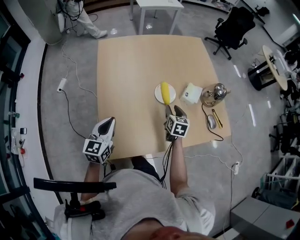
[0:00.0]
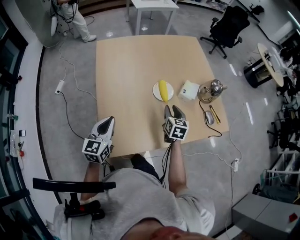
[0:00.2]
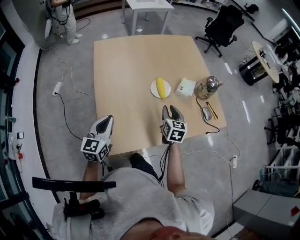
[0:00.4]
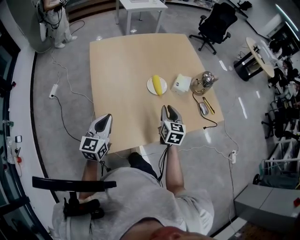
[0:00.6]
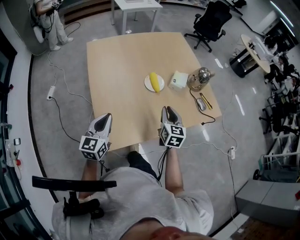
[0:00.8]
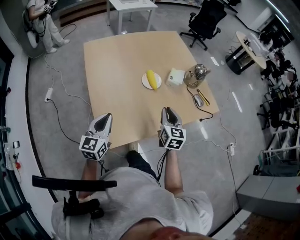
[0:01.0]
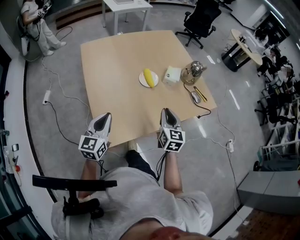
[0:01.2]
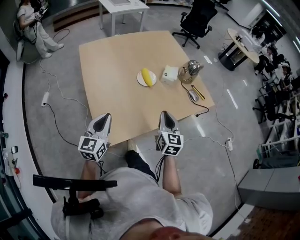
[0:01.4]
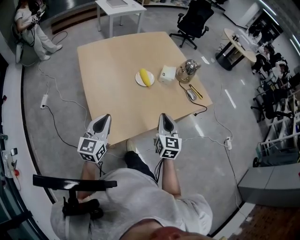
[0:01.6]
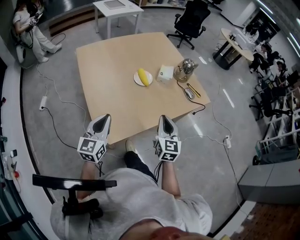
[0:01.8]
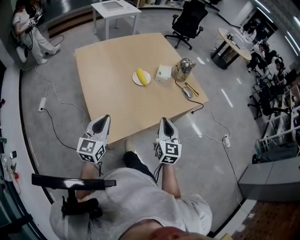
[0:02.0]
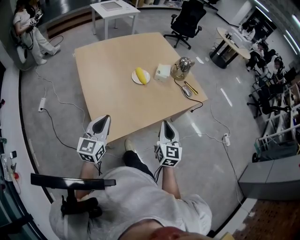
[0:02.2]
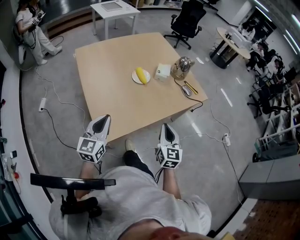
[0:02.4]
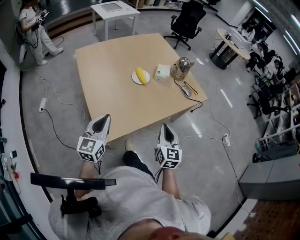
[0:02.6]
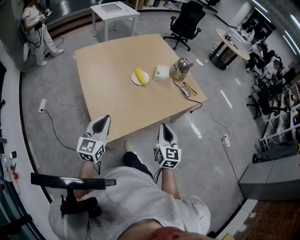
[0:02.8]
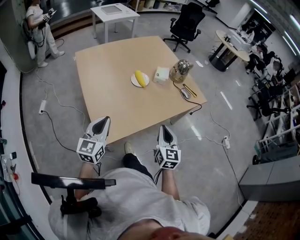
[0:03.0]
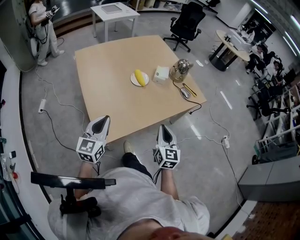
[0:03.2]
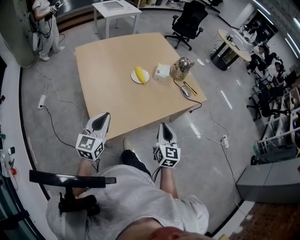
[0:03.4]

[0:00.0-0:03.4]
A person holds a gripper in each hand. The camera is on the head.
0:00.0 to 0:01.6: The right gripper goes roughly 30 cm backward and upward, rotates some 30 degrees, and closes its fingers; the left gripper shifts some 10 cm backward.
0:01.6 to 0:03.4: The right gripper travels backward by some 10 cm.

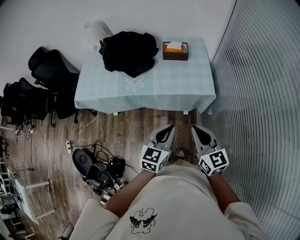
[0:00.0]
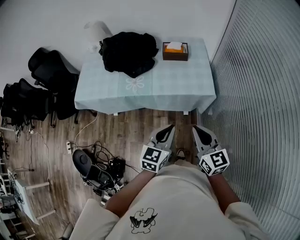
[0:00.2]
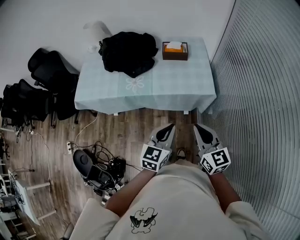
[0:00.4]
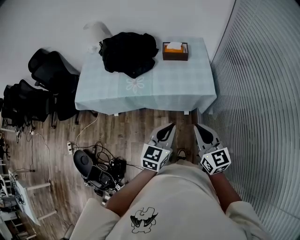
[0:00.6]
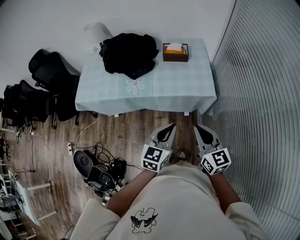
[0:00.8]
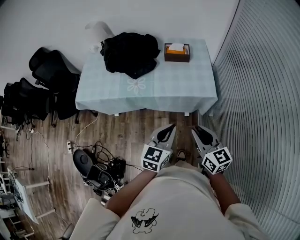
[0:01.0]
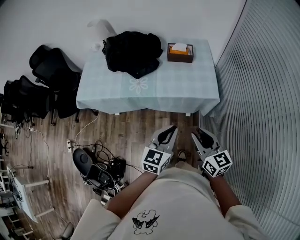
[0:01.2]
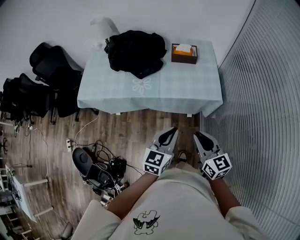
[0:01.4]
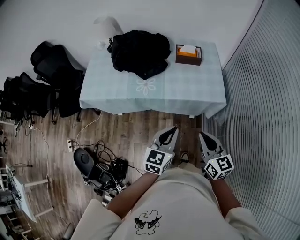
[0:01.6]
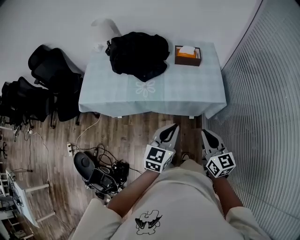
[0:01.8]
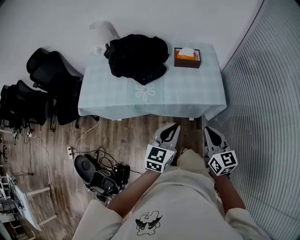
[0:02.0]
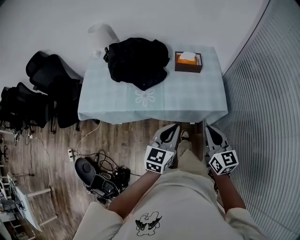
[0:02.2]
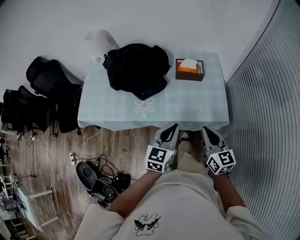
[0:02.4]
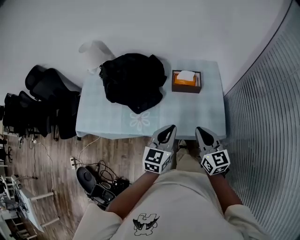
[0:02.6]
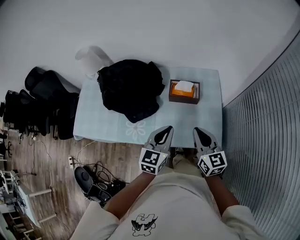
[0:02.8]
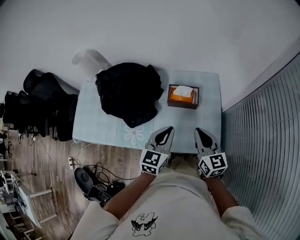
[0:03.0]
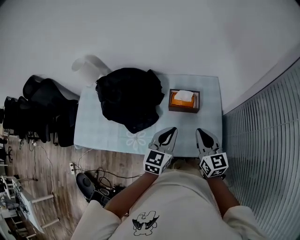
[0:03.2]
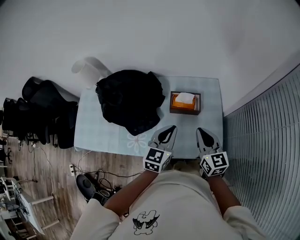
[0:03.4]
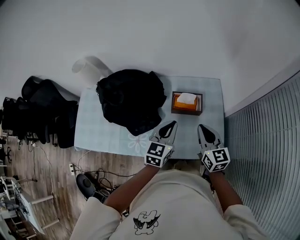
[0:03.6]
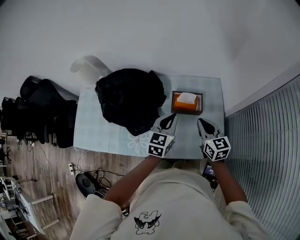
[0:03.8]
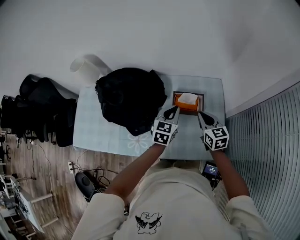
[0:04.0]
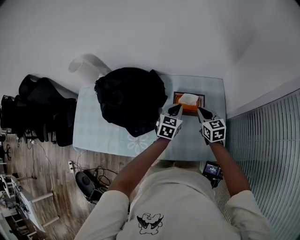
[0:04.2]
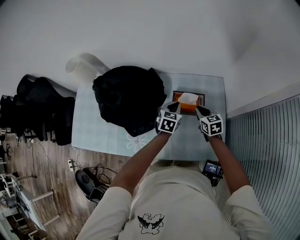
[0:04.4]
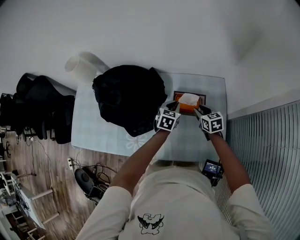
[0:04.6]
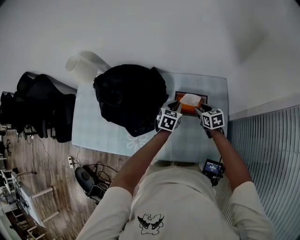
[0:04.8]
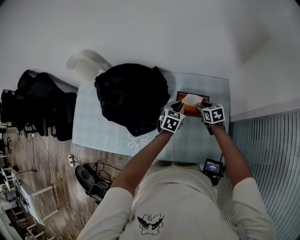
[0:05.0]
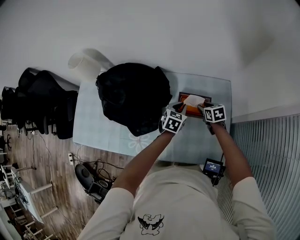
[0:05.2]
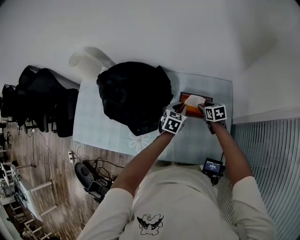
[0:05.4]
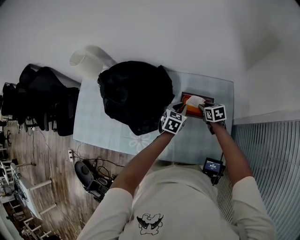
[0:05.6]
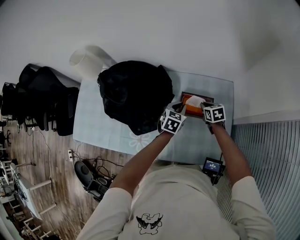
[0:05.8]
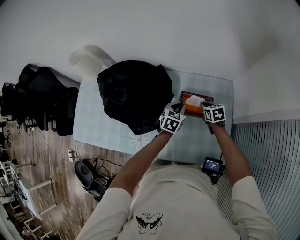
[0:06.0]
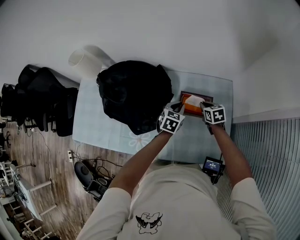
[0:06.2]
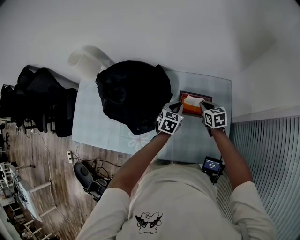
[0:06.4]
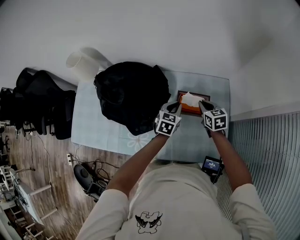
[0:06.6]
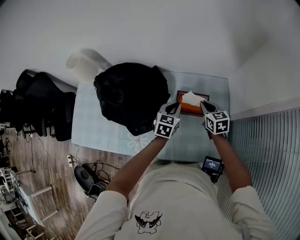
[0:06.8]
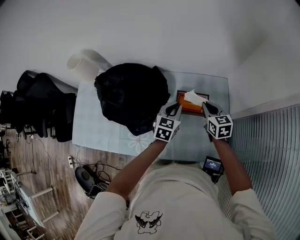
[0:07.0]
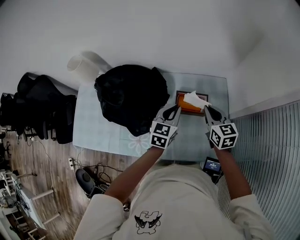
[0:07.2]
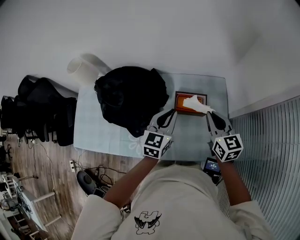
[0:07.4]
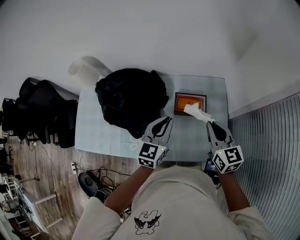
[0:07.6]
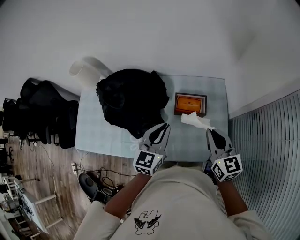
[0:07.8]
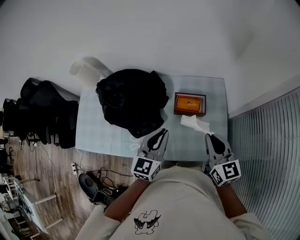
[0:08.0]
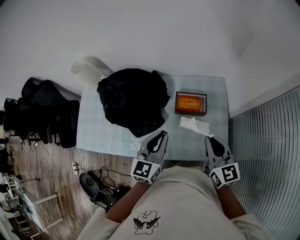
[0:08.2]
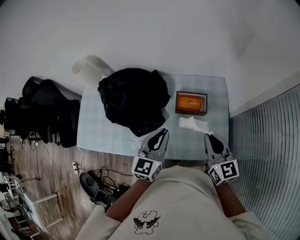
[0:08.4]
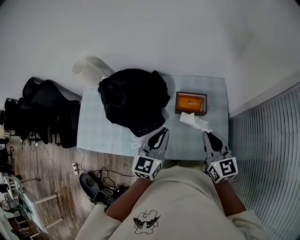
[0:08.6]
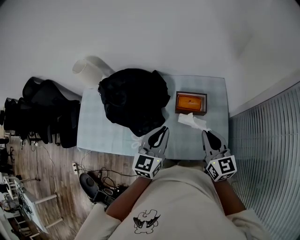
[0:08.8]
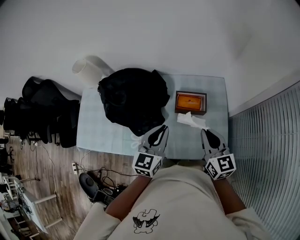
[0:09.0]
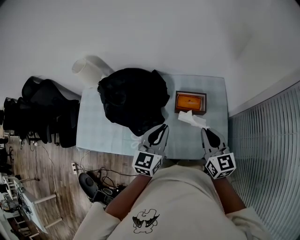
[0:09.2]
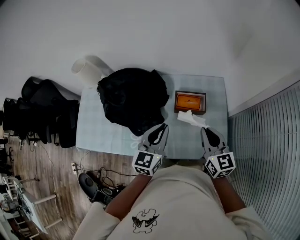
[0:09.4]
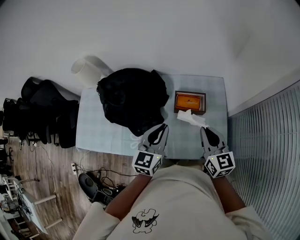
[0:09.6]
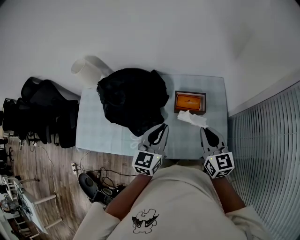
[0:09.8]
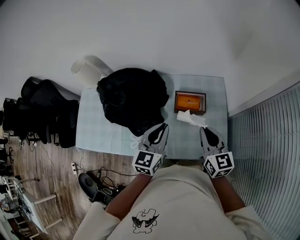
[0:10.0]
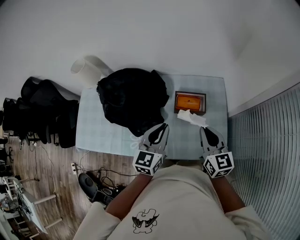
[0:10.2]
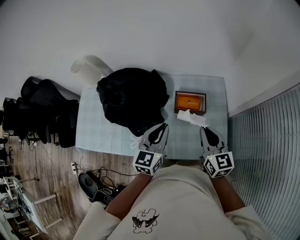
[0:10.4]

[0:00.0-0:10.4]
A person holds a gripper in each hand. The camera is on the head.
0:00.0 to 0:01.4: The grippers move only a little.
0:01.4 to 0:03.0: Both grippers move forward, roughly 40 cm.
0:03.0 to 0:04.4: Both grippers move forward and downward, approximately 25 cm. The right gripper swivels about 30 degrees.
0:04.4 to 0:06.0: The right gripper moves downward and forward, some 10 cm, and opens, then closes once more.
0:06.0 to 0:07.4: The two grippers go some 25 cm upward and backward. The right gripper angles its fingers upward, by some 30 degrees. Meanwhile the left gripper changes its angle by roughly 20 degrees.
0:07.4 to 0:09.0: Both grippers move backward, some 10 cm.
0:09.0 to 0:10.4: The two grippers keep their place.

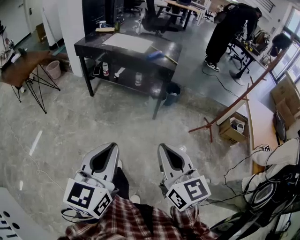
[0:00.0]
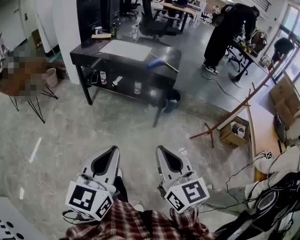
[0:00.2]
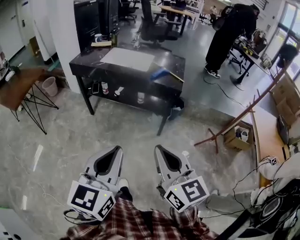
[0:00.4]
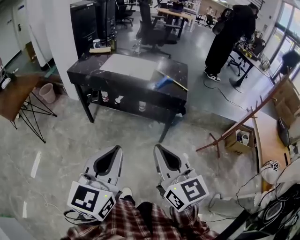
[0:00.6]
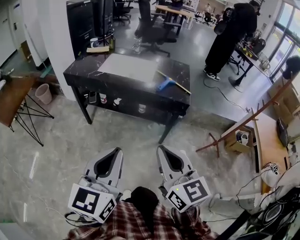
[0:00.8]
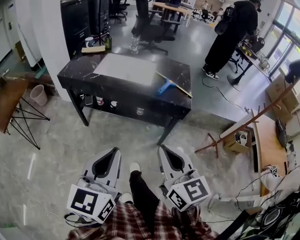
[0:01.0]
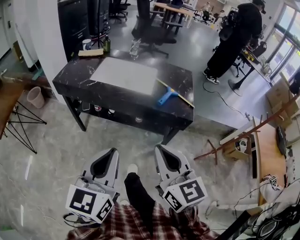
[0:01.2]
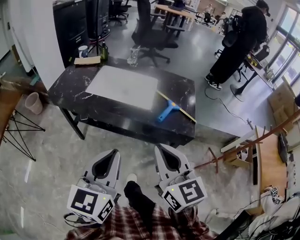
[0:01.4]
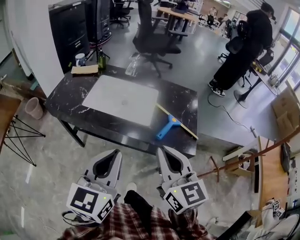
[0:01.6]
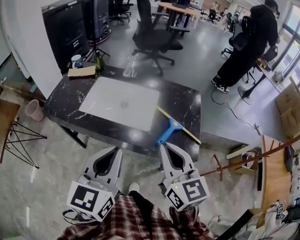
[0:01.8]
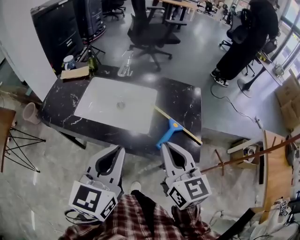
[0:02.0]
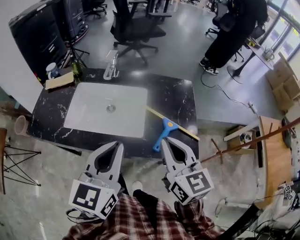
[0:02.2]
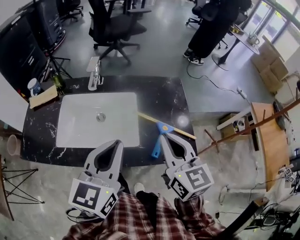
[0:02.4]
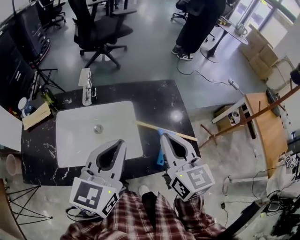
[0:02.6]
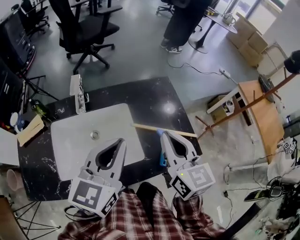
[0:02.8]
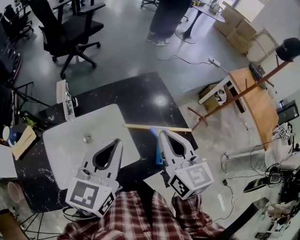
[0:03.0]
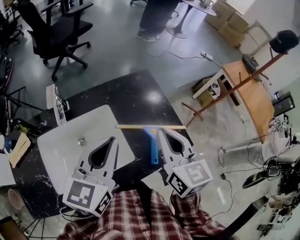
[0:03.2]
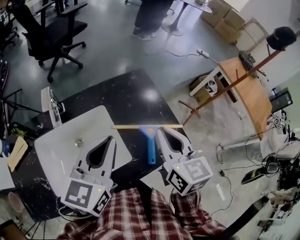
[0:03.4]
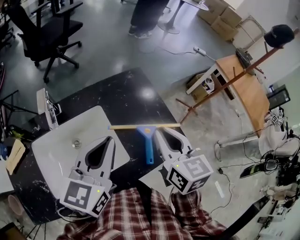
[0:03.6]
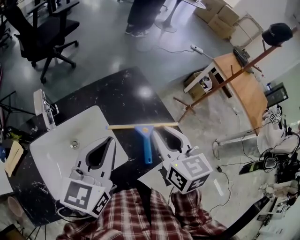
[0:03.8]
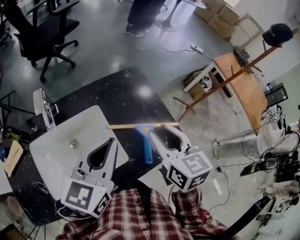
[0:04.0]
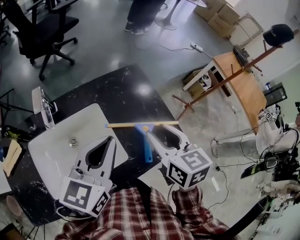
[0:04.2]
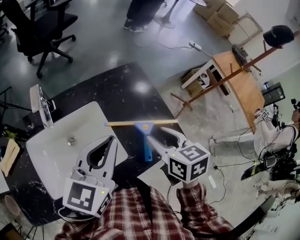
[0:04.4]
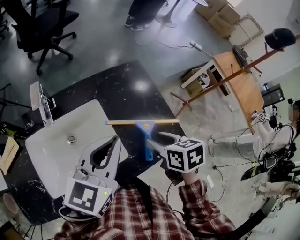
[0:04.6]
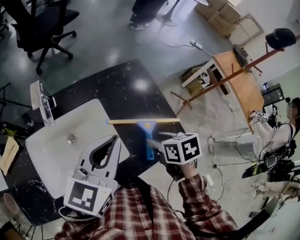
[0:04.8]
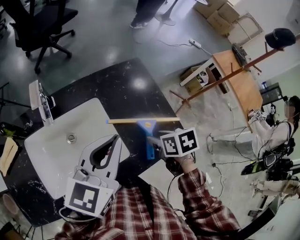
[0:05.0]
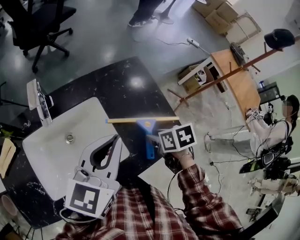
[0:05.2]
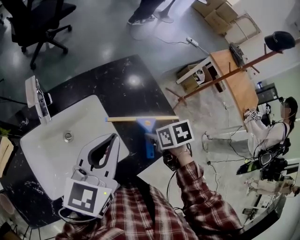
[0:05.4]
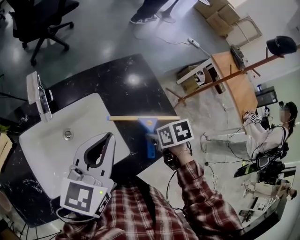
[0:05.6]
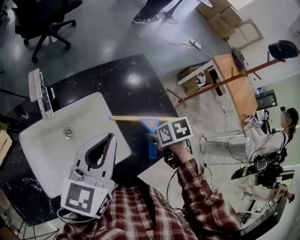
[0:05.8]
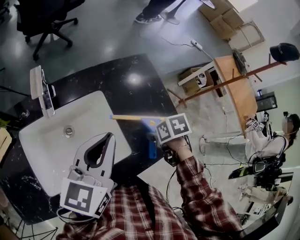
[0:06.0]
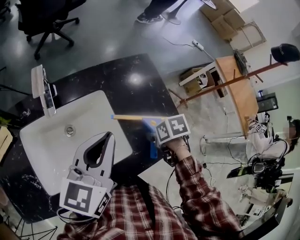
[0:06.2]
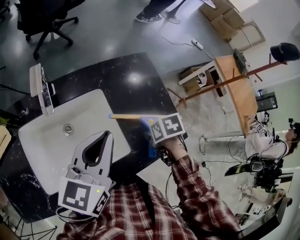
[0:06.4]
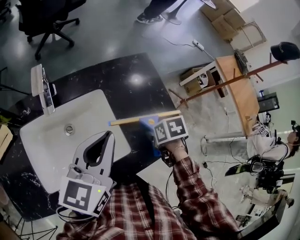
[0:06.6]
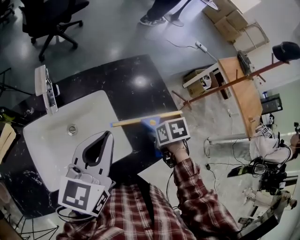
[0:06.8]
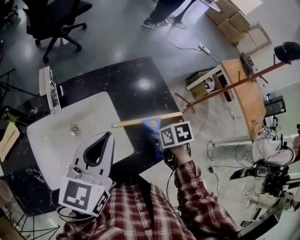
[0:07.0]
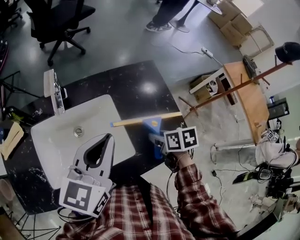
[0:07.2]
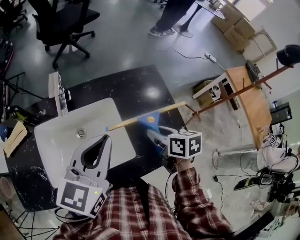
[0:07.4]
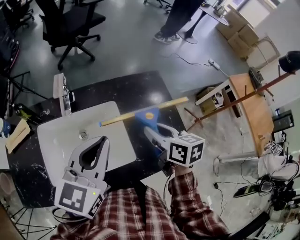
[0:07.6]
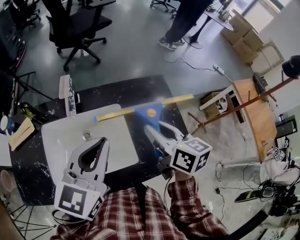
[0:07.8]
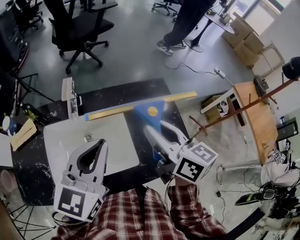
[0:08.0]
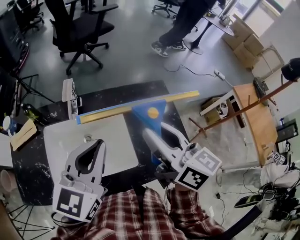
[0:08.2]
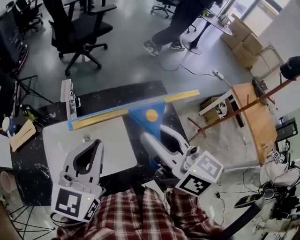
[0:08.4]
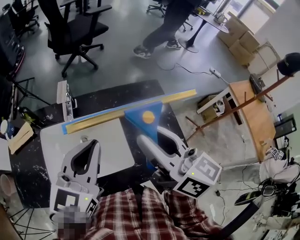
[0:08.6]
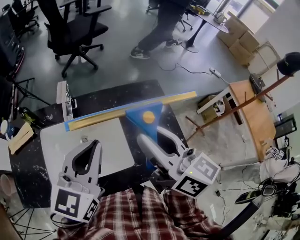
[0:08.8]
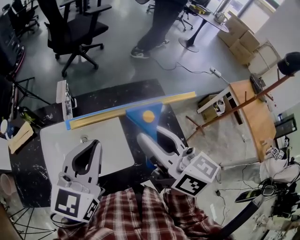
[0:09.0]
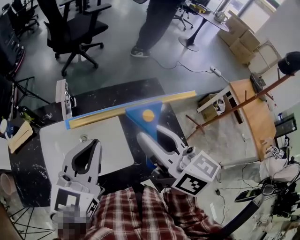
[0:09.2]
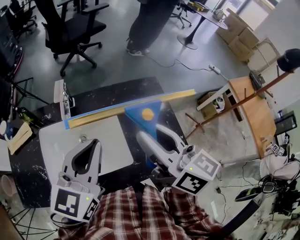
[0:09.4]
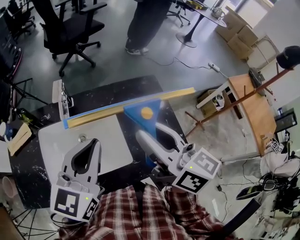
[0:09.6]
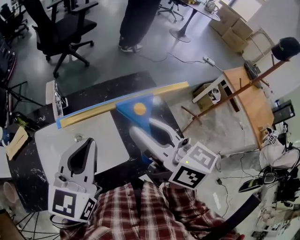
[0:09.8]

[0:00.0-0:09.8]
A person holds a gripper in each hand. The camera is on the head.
0:00.0 to 0:01.4: The two grippers travel together, forward, some 60 cm.
0:01.4 to 0:02.8: The right gripper ends up approximately 35 cm from where it was, and swivels approximately 40 degrees. The left gripper ends up approximately 40 cm from where it was, and changes its angle by about 40 degrees.
0:02.8 to 0:04.2: The left gripper is displaced forward by about 5 cm. The right gripper shifts by approximately 5 cm, and opens its fingers.
0:04.2 to 0:05.6: The right gripper is displaced downward by some 15 cm, and tips its fingers downward by about 40 degrees.
0:05.6 to 0:07.0: The grippers stay close to where they were, moving slightly.
0:07.0 to 0:08.4: The left gripper heads upward, covering approximately 5 cm, while the right gripper shifts approximately 30 cm upward, and tips its fingers upward by about 70 degrees.
0:08.4 to 0:09.8: The grippers make only small movements.
